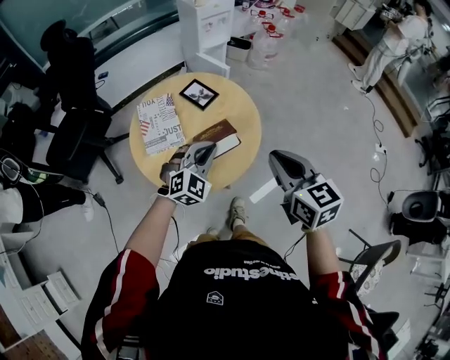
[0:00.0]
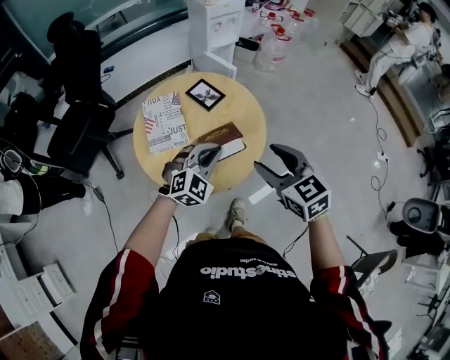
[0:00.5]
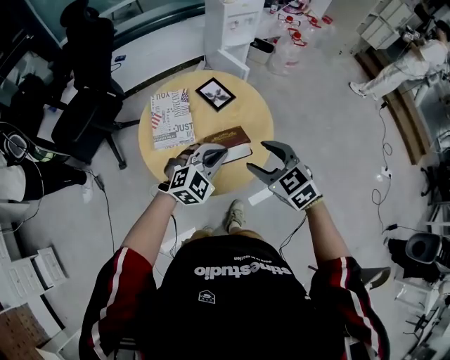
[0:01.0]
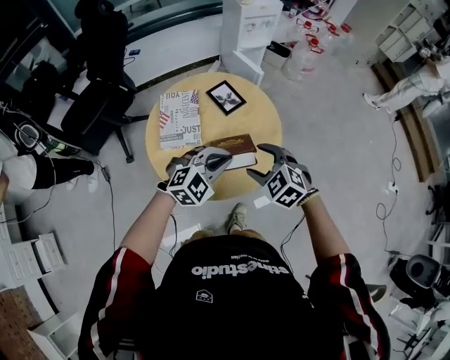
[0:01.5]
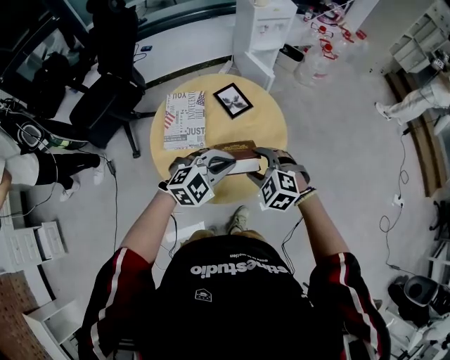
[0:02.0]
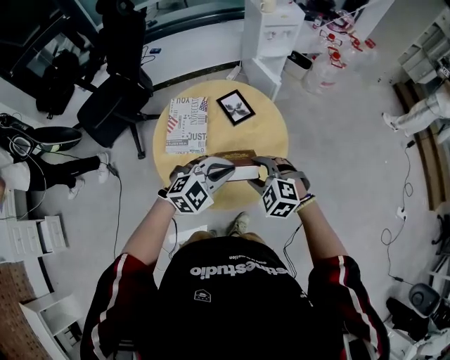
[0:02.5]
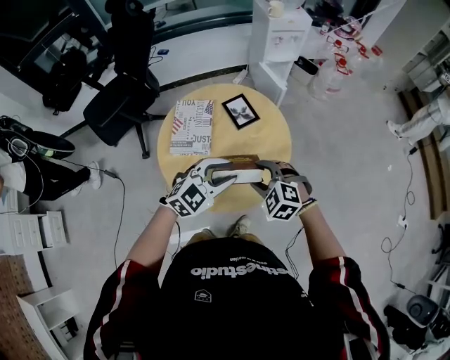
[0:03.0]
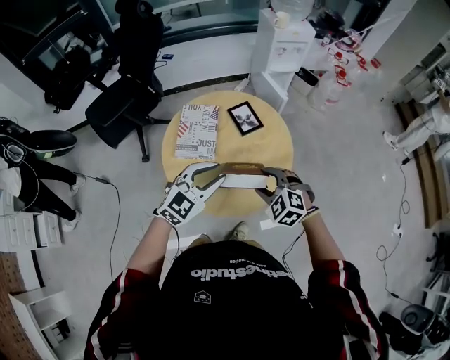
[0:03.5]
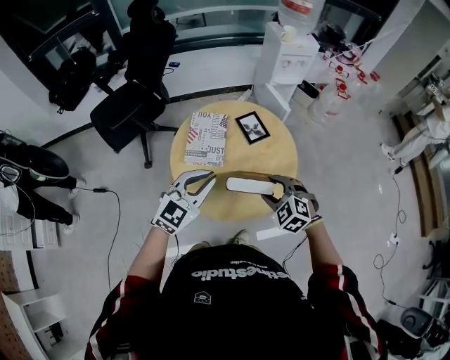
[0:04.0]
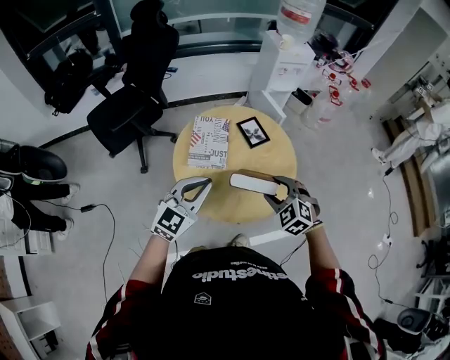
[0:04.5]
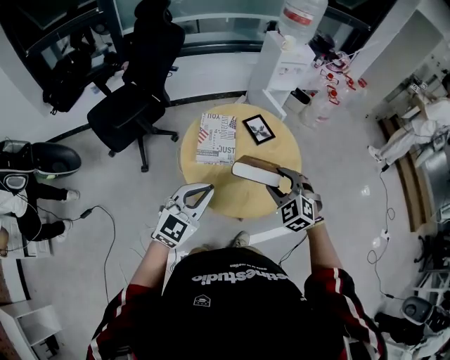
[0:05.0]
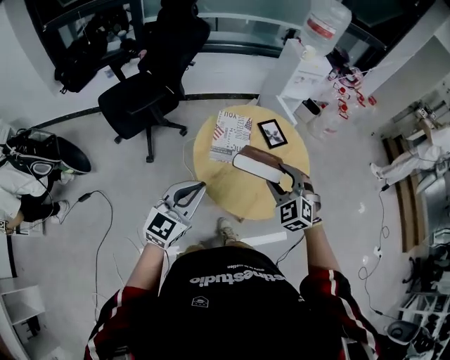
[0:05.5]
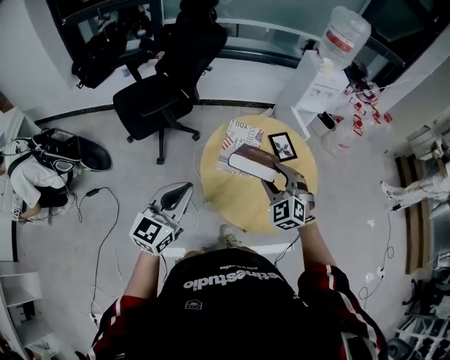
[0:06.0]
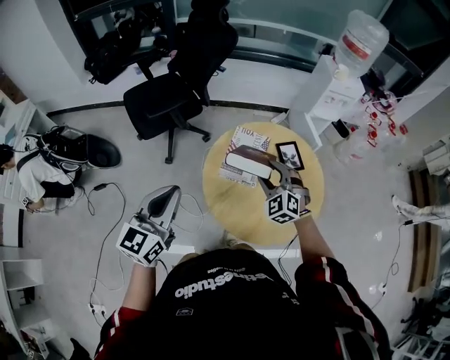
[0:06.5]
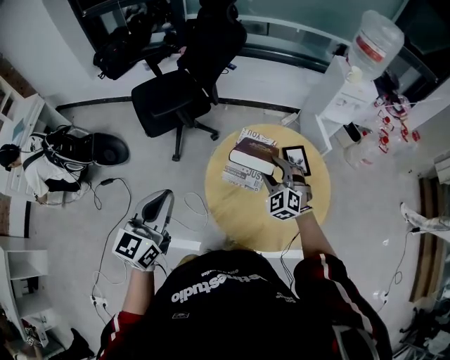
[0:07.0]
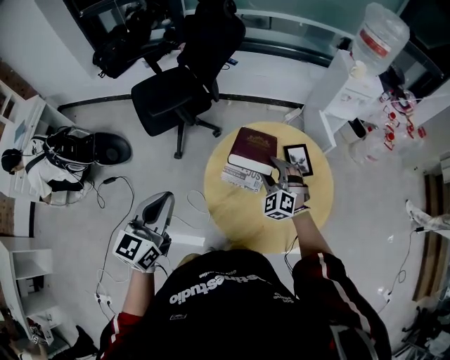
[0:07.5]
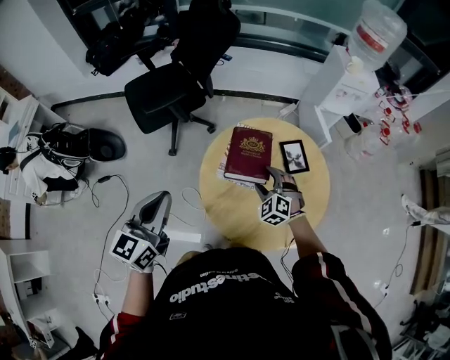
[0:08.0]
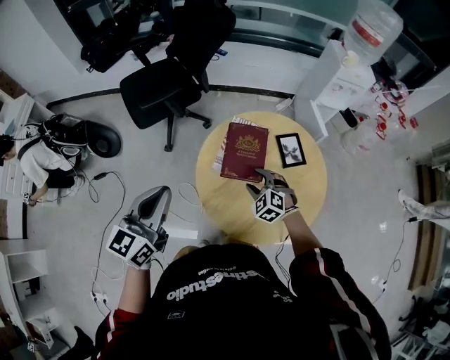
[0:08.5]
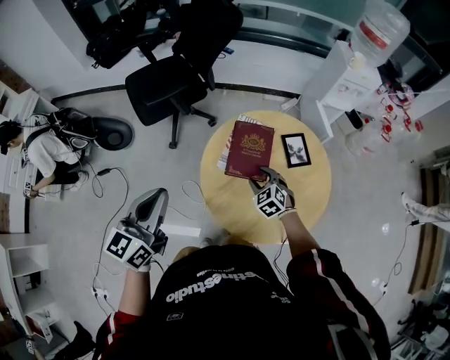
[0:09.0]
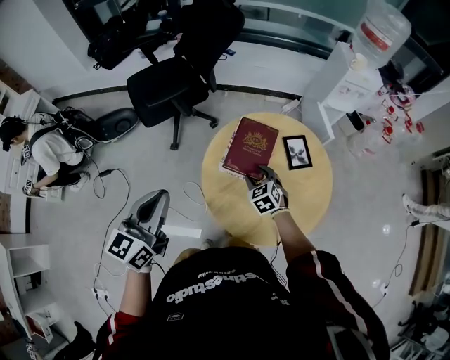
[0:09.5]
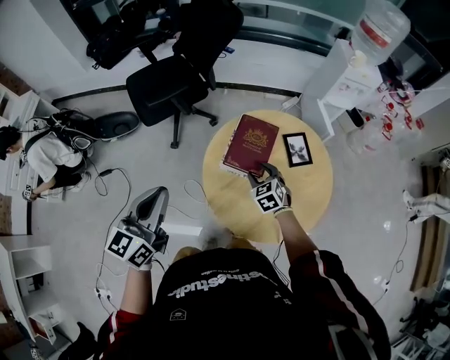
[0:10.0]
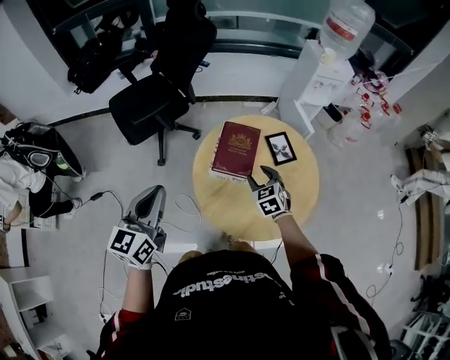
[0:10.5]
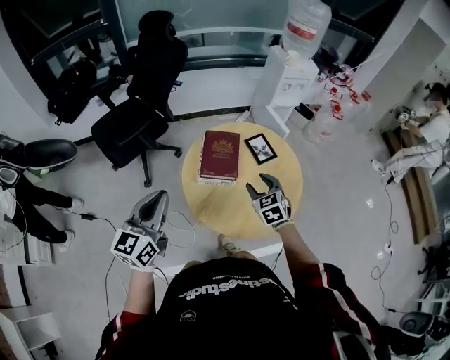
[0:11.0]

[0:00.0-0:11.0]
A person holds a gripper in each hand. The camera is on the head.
0:00.0 to 0:02.0: The right gripper shifts roughly 20 cm downward, forward and to the left, rolls counterclockwise, seen from behind, by roughly 60 degrees, and opens its fingers.
0:02.0 to 0:03.5: The left gripper travels to the left by approximately 5 cm, changes its angle by approximately 30 degrees, and opens.
0:03.5 to 0:05.5: The right gripper travels to the left and upward by roughly 15 cm, and turns by some 20 degrees. Meanwhile the left gripper travels to the left and backward by about 25 cm, swivels approximately 30 degrees, and closes its fingers.
0:05.5 to 0:07.5: The left gripper goes about 10 cm forward and to the left, and rotates about 30 degrees; the right gripper travels forward and downward by approximately 25 cm.
0:07.5 to 0:09.0: The right gripper is displaced downward and backward by about 10 cm, and rotates roughly 30 degrees.
0:09.0 to 0:11.0: The right gripper heads upward, backward and to the right, covering about 15 cm, and turns by roughly 30 degrees.

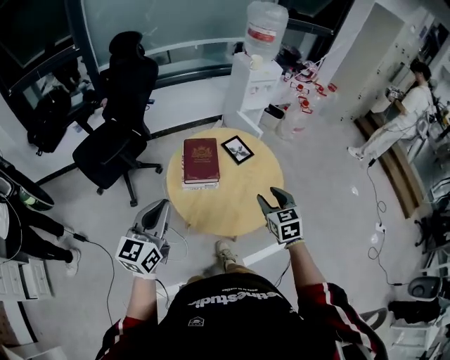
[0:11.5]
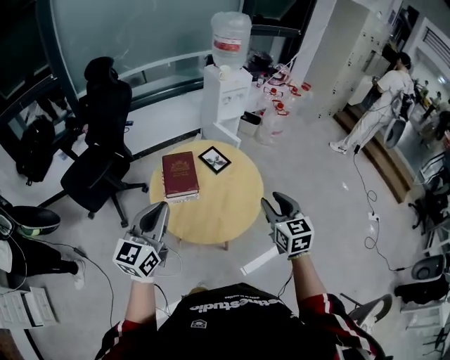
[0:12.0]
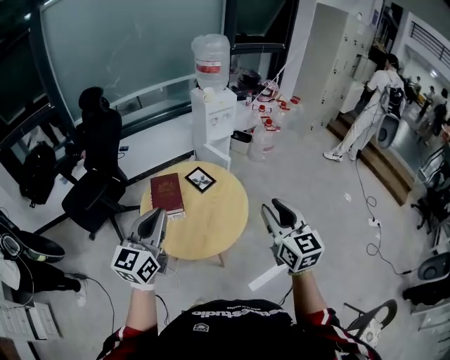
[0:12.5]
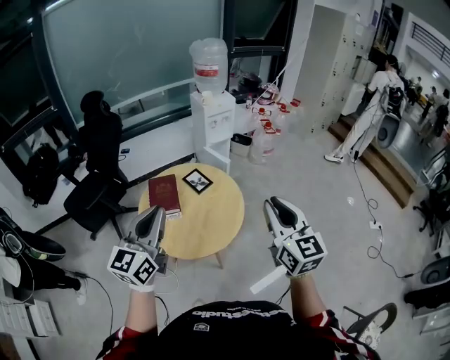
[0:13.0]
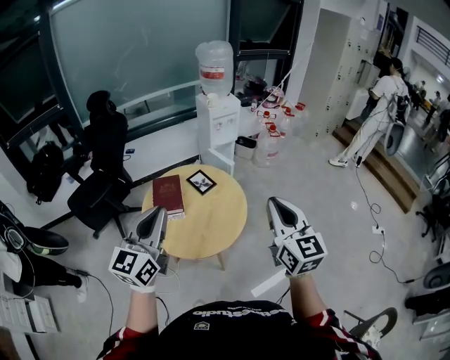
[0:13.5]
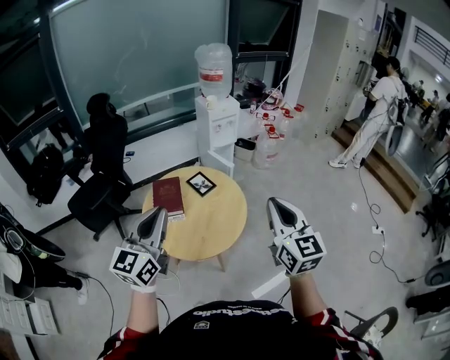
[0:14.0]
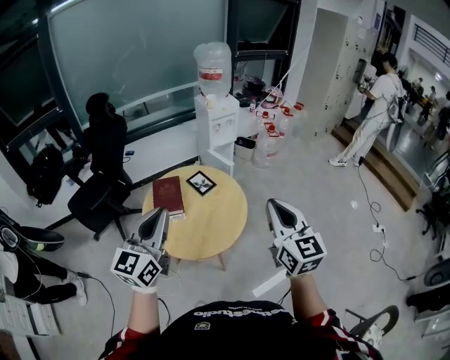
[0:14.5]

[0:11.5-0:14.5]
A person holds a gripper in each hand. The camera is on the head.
0:11.5 to 0:13.0: The left gripper goes about 25 cm to the right and upward; the right gripper goes roughly 30 cm upward, to the right and backward, points its fingers approximately 30 degrees further upward, and closes its fingers.
0:13.0 to 0:14.5: The grippers stay close to where they were, moving slightly.

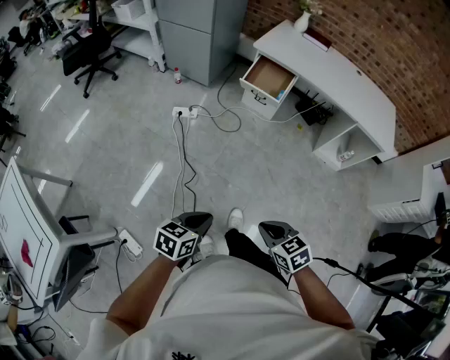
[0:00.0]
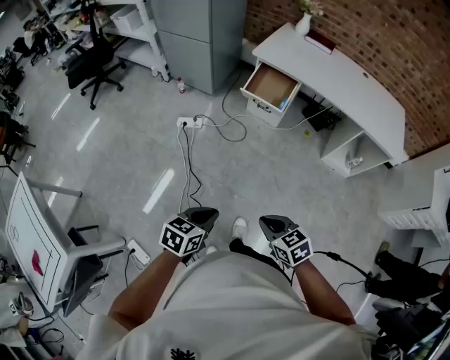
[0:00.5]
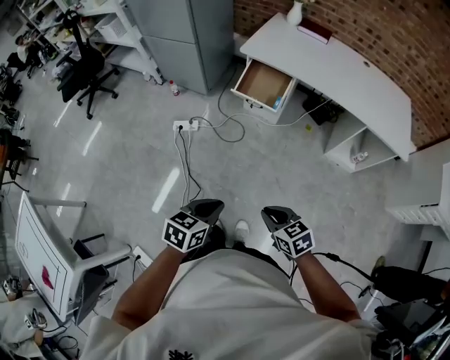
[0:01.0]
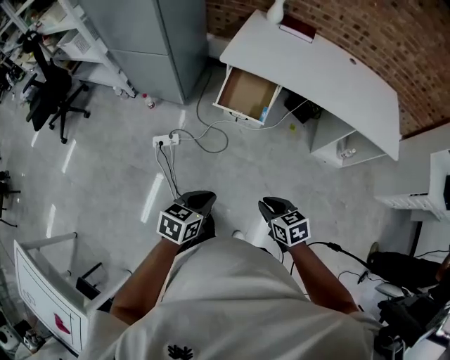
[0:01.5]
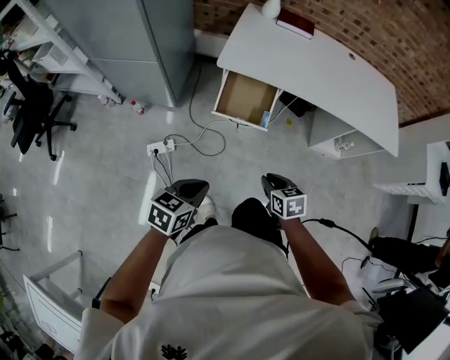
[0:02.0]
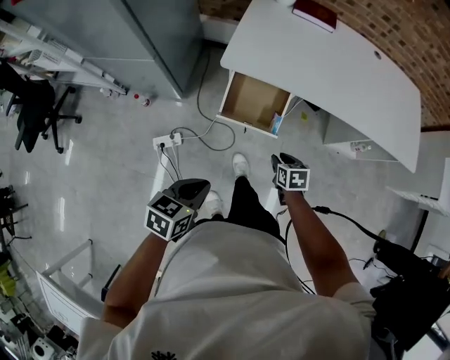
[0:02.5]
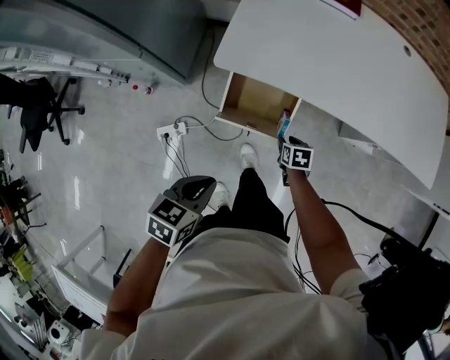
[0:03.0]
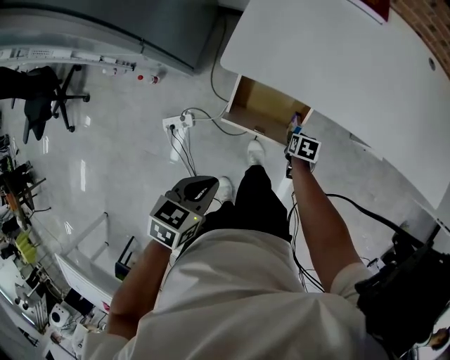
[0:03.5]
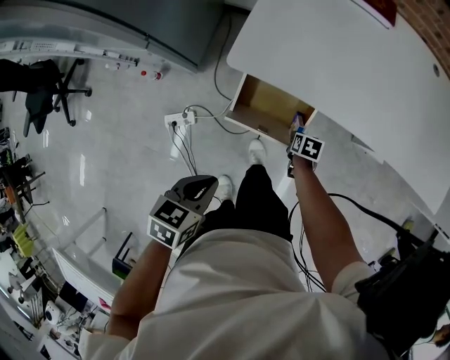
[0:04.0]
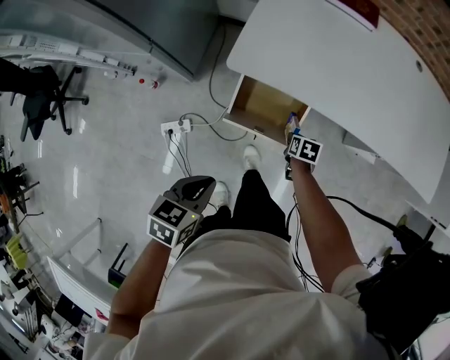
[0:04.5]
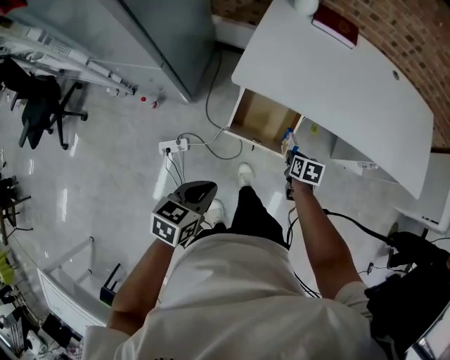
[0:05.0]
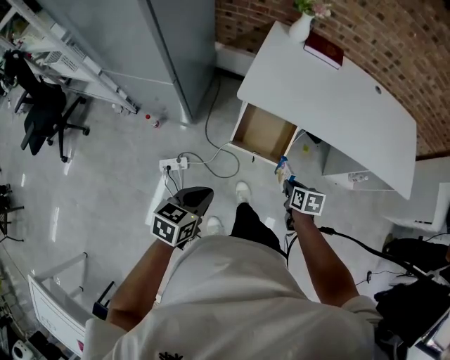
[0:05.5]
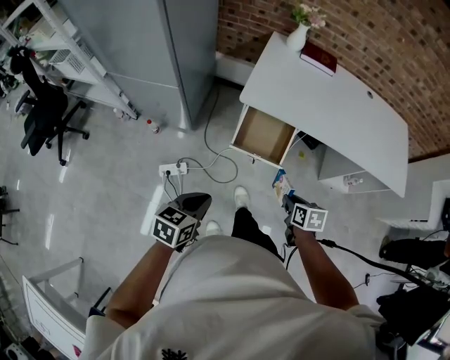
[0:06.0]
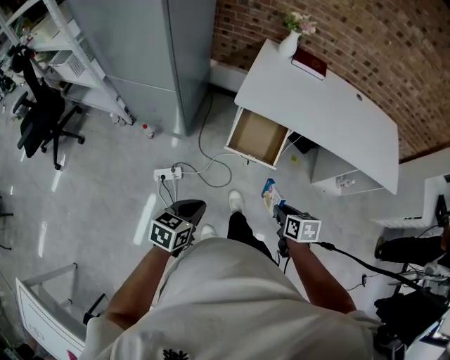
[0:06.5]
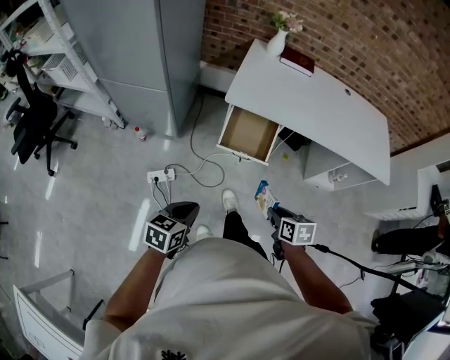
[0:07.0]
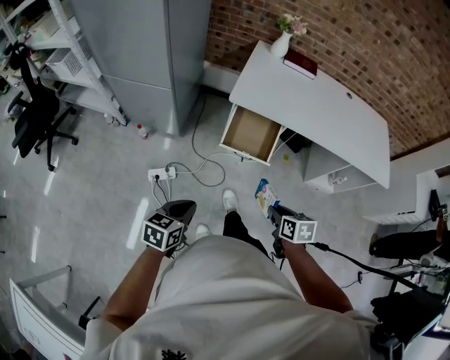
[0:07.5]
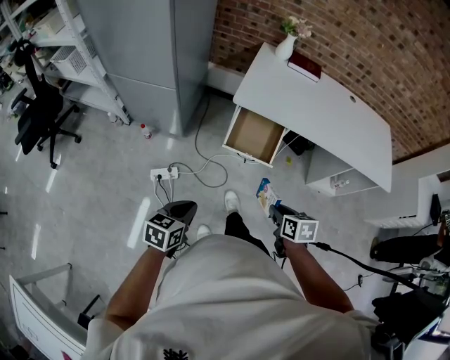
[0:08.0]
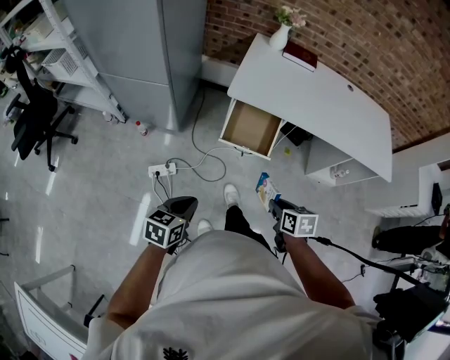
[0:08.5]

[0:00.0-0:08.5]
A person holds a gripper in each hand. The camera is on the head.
0:00.0 to 0:02.0: The two grippers travel together, forward, about 60 cm. The right gripper changes its angle by about 30 degrees.
0:02.0 to 0:04.0: The left gripper is displaced forward by approximately 35 cm; the right gripper travels forward and downward by about 50 cm, and rotates approximately 30 degrees.
0:04.0 to 0:06.5: The left gripper shifts roughly 30 cm backward; the right gripper goes some 50 cm backward and upward, and changes its angle by approximately 20 degrees.
0:06.5 to 0:08.5: The grippers move only a little.

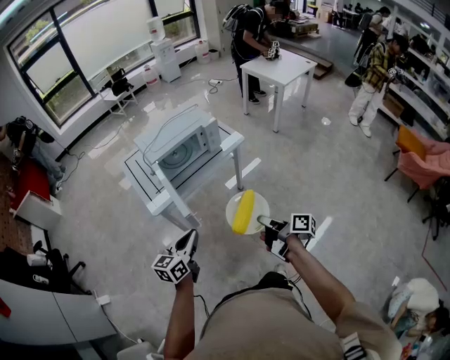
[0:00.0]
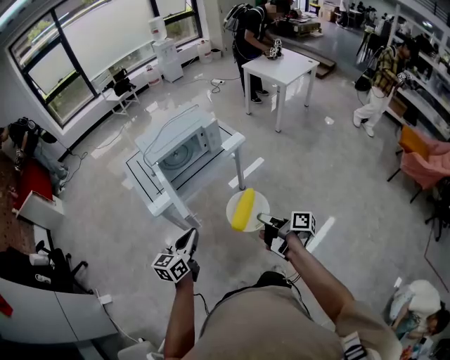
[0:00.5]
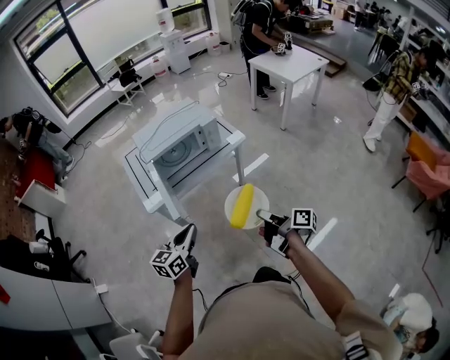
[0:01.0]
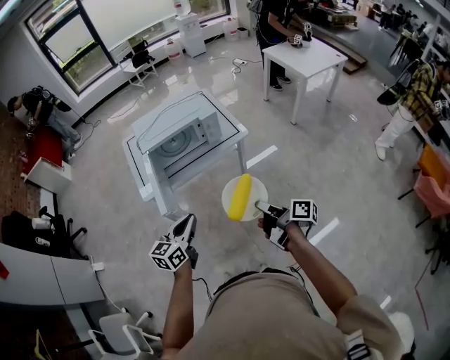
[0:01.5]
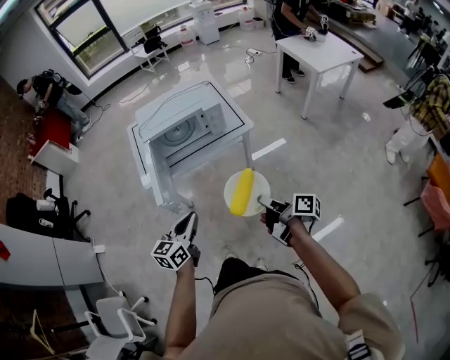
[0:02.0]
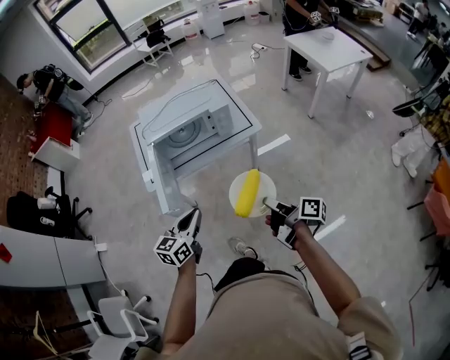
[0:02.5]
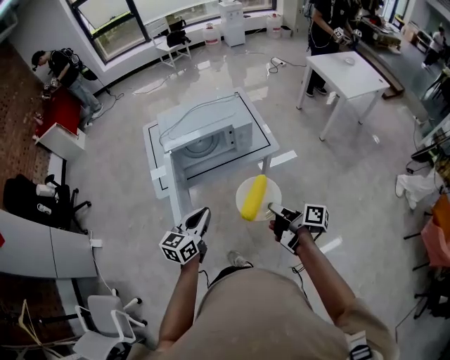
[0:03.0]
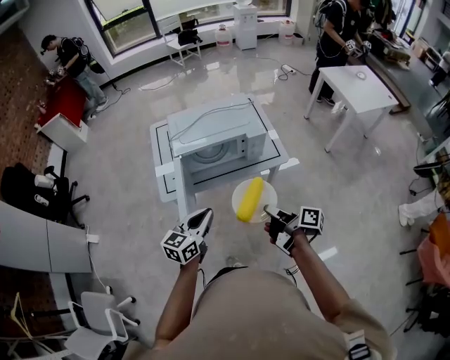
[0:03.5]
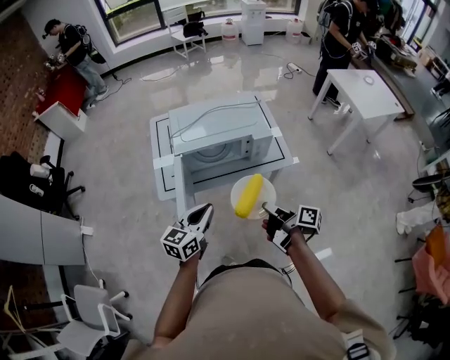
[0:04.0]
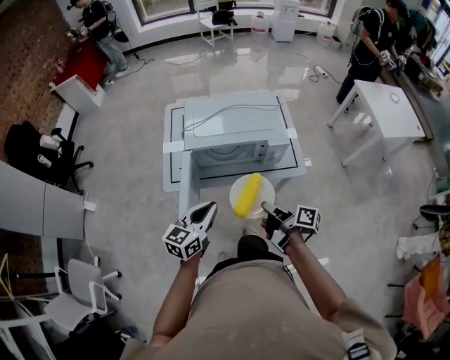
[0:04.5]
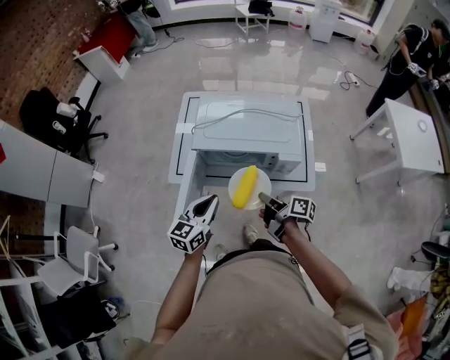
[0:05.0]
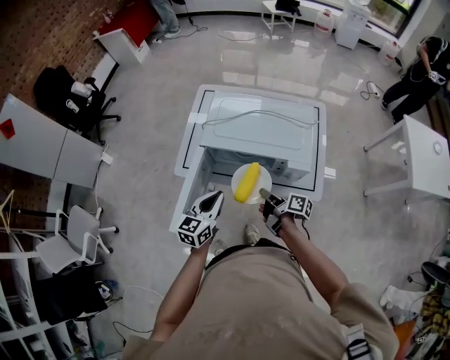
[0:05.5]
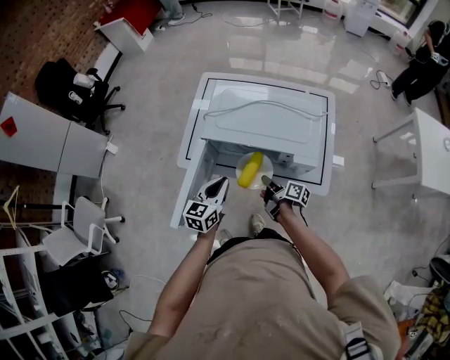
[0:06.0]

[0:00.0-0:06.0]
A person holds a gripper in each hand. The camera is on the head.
0:00.0 to 0:02.0: The right gripper is displaced to the right and forward by about 20 cm, while the left gripper shifts approximately 15 cm to the right.
0:02.0 to 0:04.0: The right gripper is displaced forward and to the left by about 25 cm; the left gripper moves forward, roughly 20 cm.
0:04.0 to 0:06.0: The left gripper ends up some 15 cm from where it was, and turns by some 30 degrees. The right gripper moves roughly 30 cm, and changes its angle by approximately 30 degrees.
